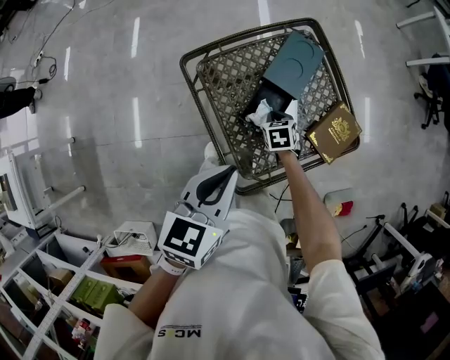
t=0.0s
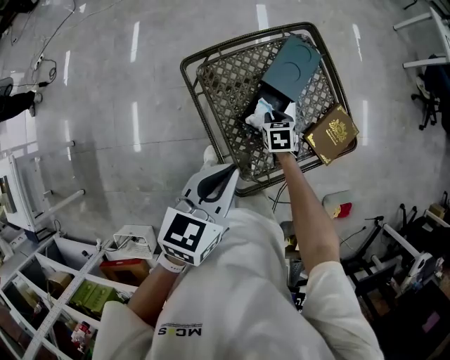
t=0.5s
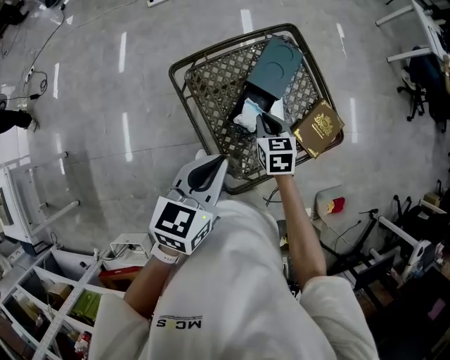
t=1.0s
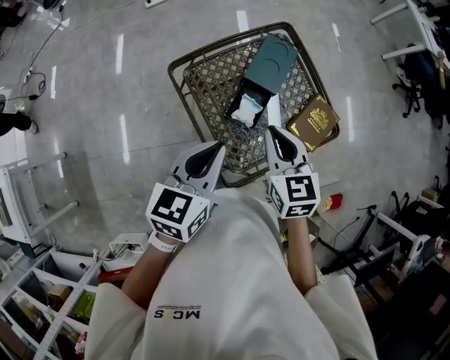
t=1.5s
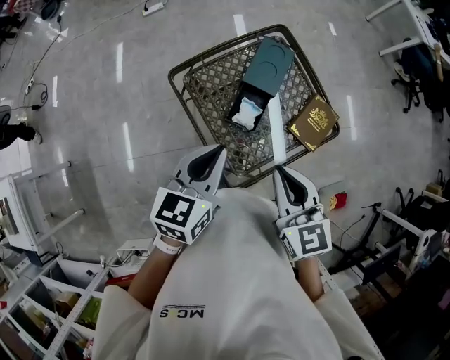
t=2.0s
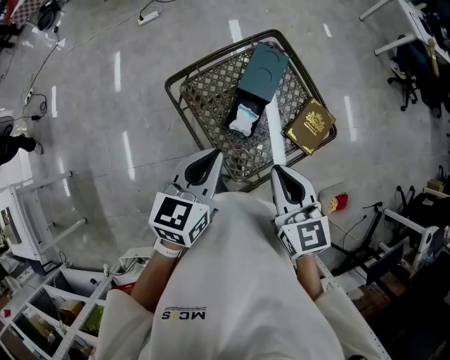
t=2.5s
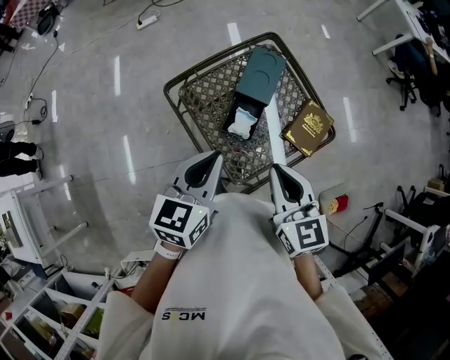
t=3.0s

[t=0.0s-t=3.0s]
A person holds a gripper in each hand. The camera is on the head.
t=0.0s to t=1.5s: The right gripper goes some 30 cm upward, and tilts its fingers approximately 30 degrees upward.
t=1.5s to t=3.0s: The right gripper shifts approximately 10 cm backward and upward.

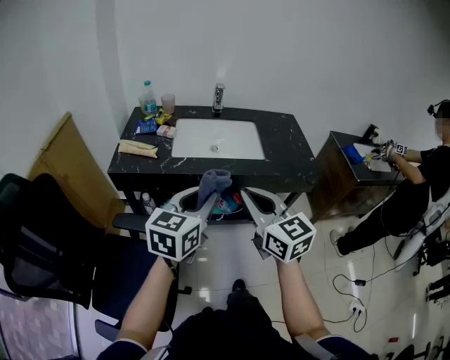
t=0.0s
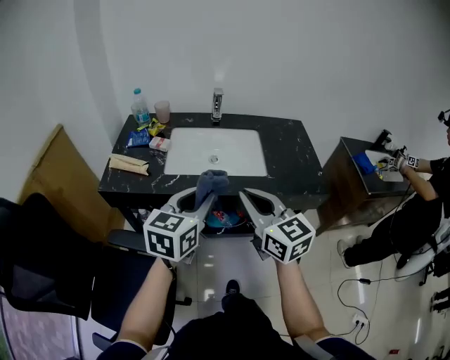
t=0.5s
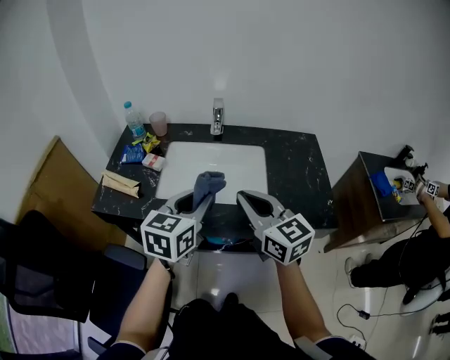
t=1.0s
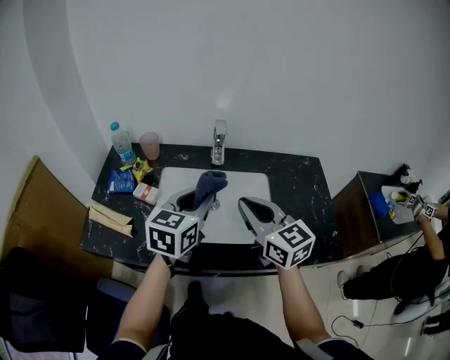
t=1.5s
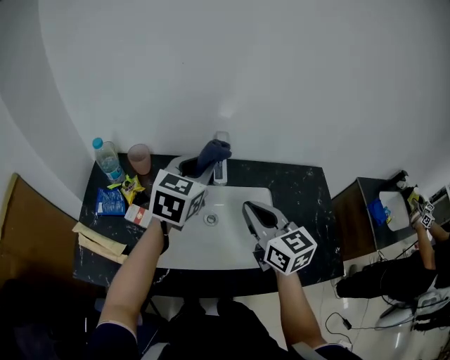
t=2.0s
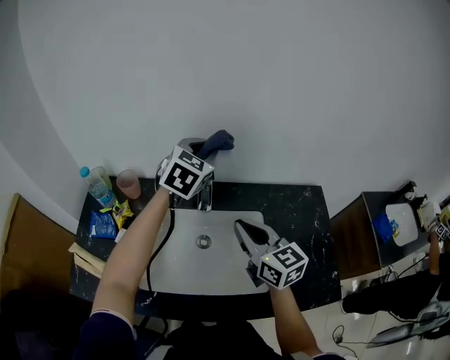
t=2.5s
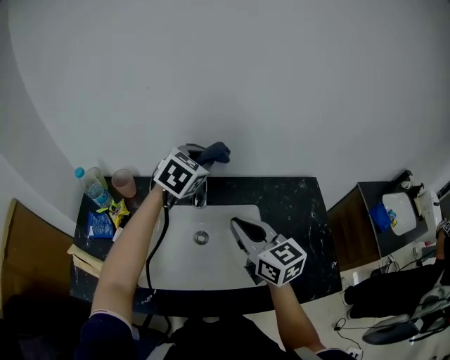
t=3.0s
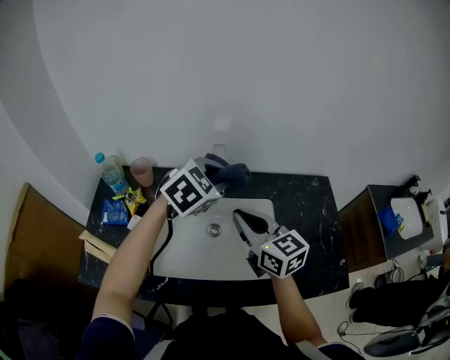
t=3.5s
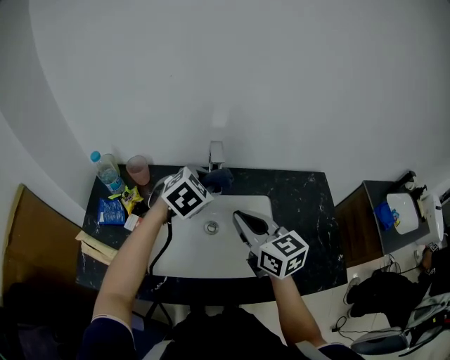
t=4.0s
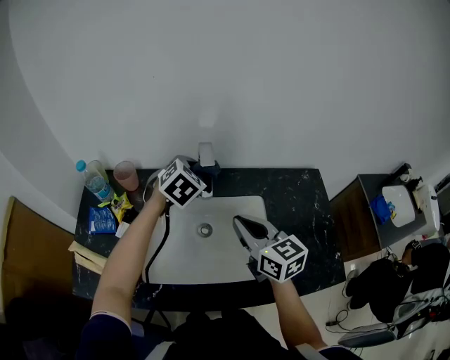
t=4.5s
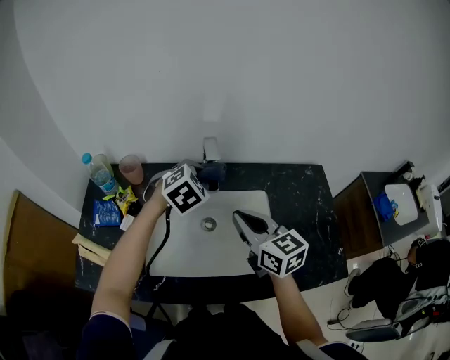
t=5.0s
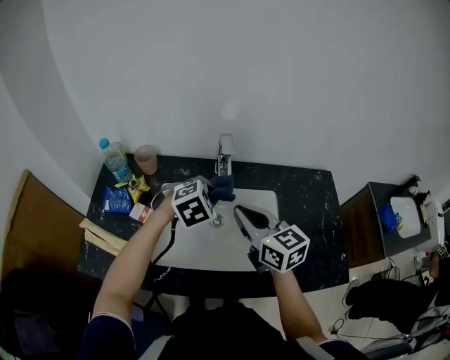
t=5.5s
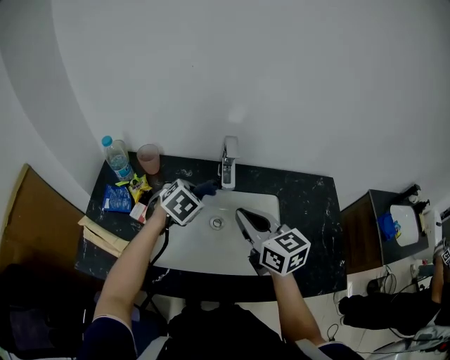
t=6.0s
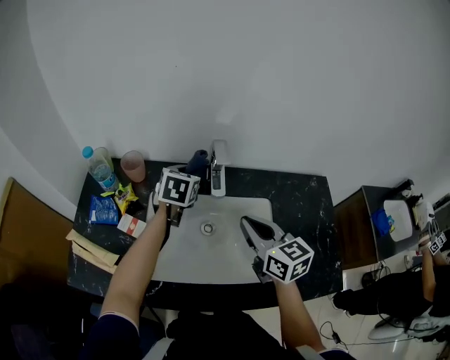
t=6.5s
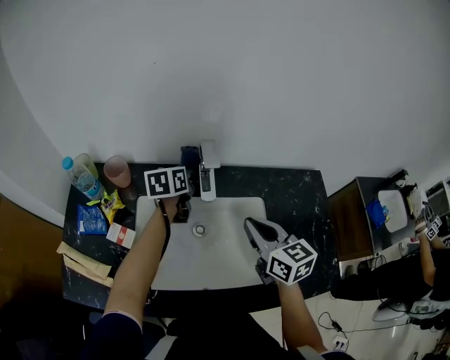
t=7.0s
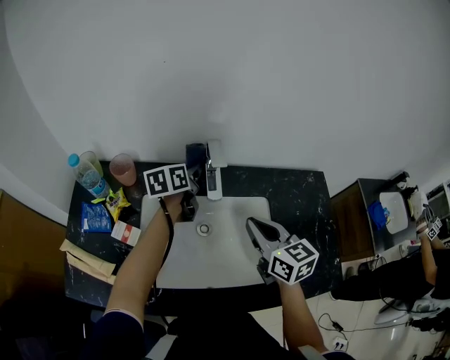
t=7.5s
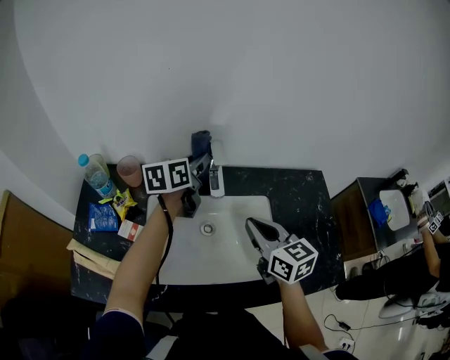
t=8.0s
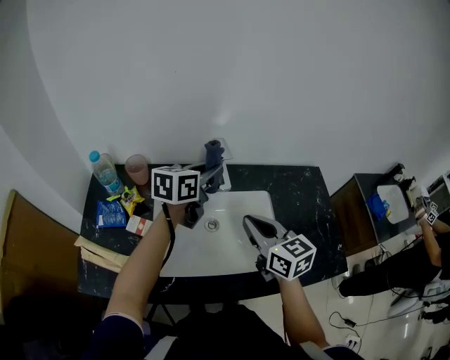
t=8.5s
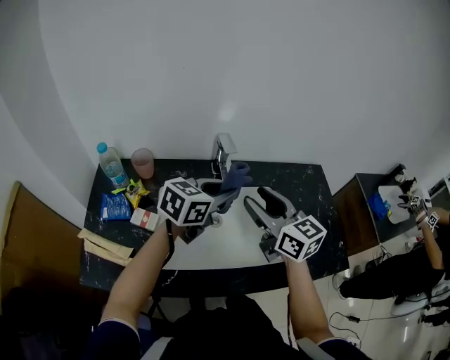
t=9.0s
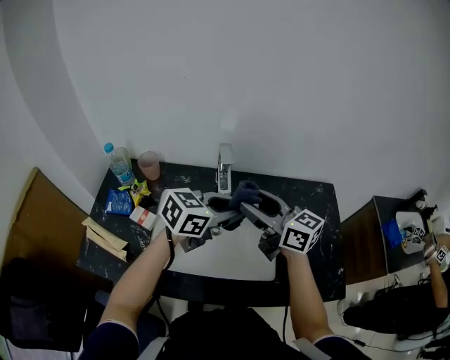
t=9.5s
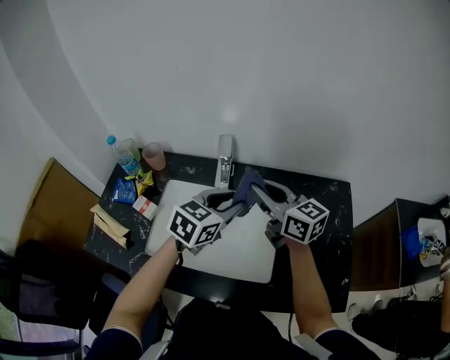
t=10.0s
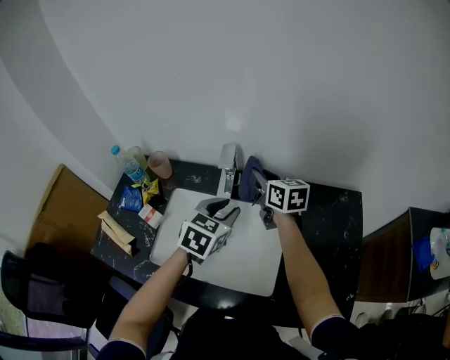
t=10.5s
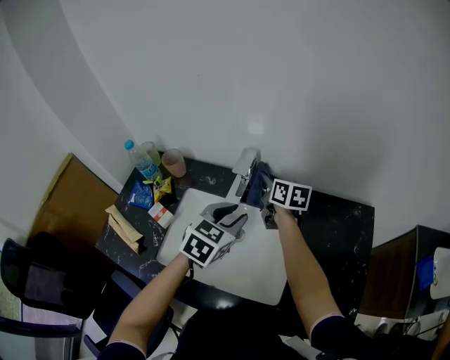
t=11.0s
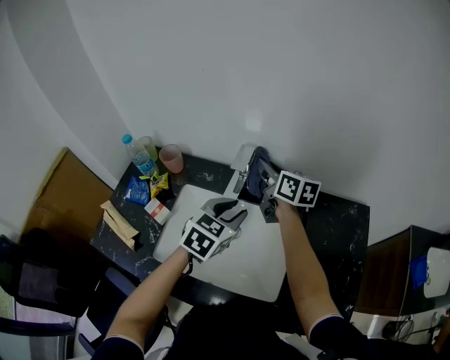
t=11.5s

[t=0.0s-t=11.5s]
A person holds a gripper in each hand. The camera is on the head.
t=0.0s to t=2.0s: The pair of grippers is taken forward, some 50 cm.
t=2.0s to t=4.0s: The left gripper is displaced downward by some 10 cm, goes forward and returns, some 10 cm each way, and changes its angle by about 40 degrees.
t=4.0s to t=6.0s: The left gripper goes about 10 cm downward and to the left, and travels forward and back again, some 5 cm each way.
t=6.0s to t=7.5s: The right gripper moves to the right, about 5 cm. The left gripper travels forward by approximately 15 cm, and rotates around the line of its fingers by some 50 degrees, counterclockwise from behind.
t=7.5s to t=9.5s: The right gripper travels upward by roughly 10 cm, swivels approximately 30 degrees, and opens, while the left gripper travels backward, to the right and upward by about 25 cm, and rotates some 50 degrees.
t=9.5s to t=11.5s: The left gripper goes approximately 10 cm downward and forward, and swivels roughly 40 degrees; the right gripper shifts about 20 cm forward, and closes its fingers.

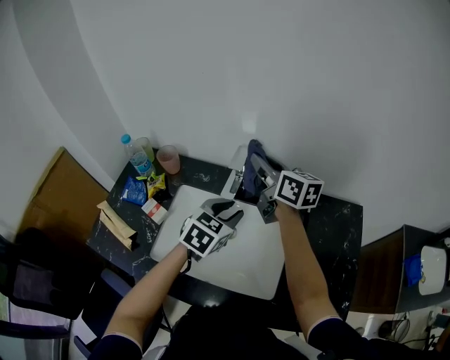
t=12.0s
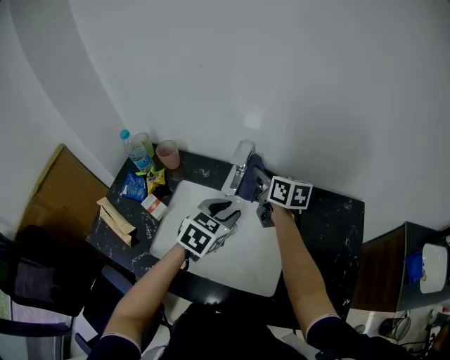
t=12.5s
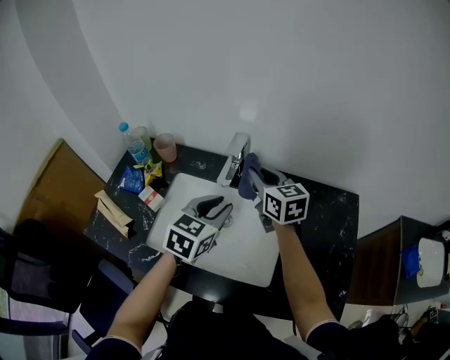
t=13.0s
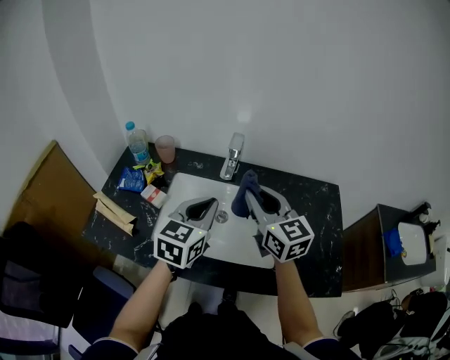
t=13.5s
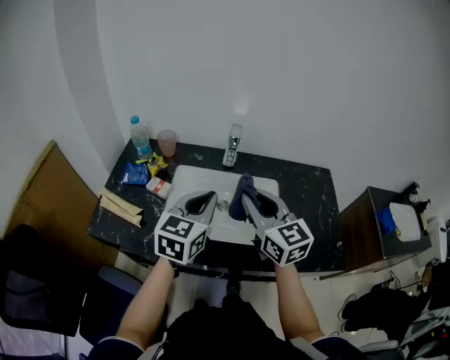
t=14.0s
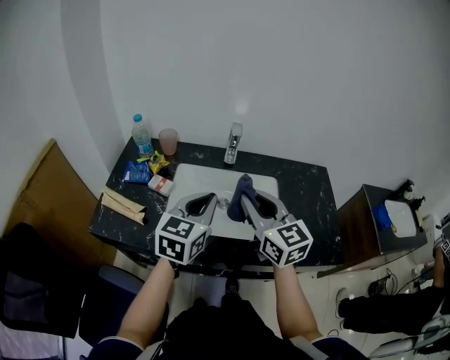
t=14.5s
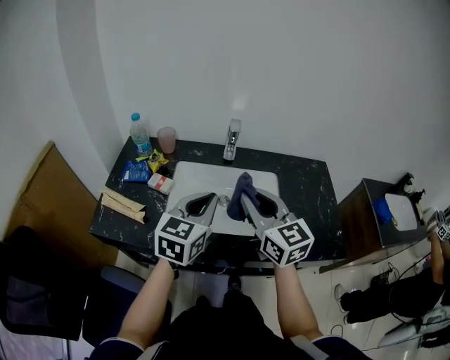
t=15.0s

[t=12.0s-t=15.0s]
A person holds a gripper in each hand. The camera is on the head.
t=12.0s to t=13.5s: The right gripper heads backward, covering roughly 20 cm, and rotates roughly 30 degrees. Meanwhile the left gripper is displaced backward, upward and to the left by about 15 cm, turns by about 20 degrees, and closes its fingers.
t=13.5s to t=15.0s: The grippers both shift backward by some 10 cm.

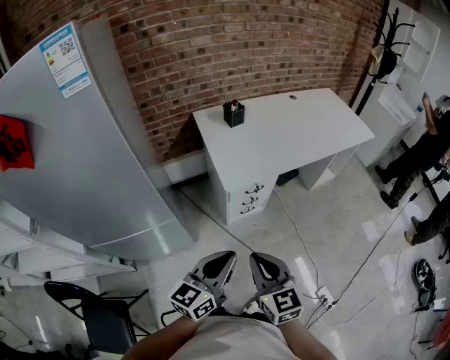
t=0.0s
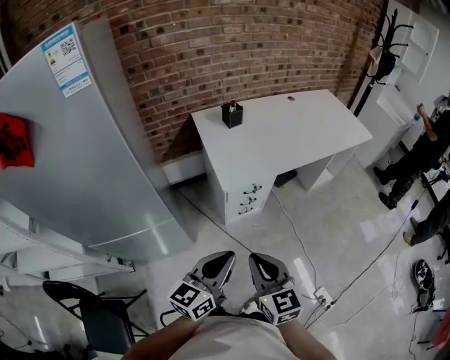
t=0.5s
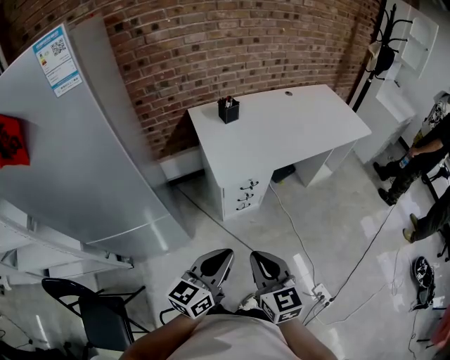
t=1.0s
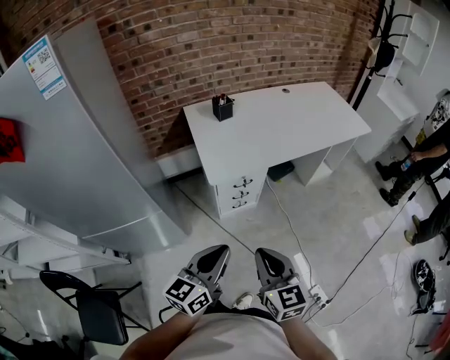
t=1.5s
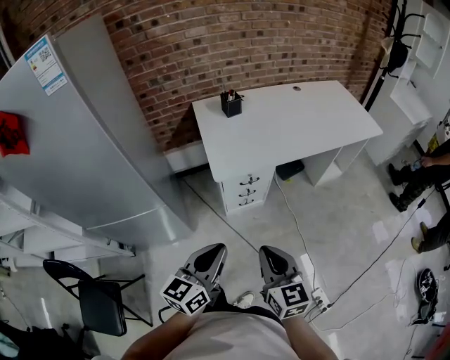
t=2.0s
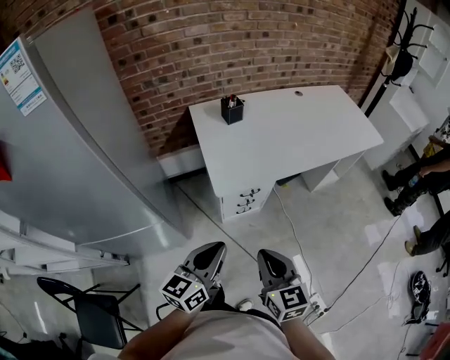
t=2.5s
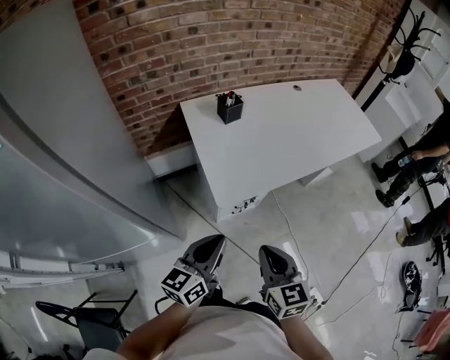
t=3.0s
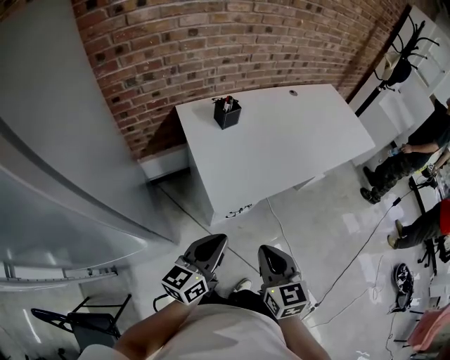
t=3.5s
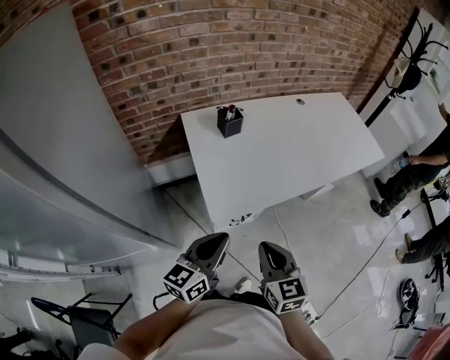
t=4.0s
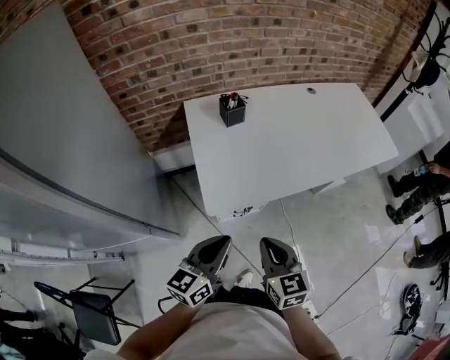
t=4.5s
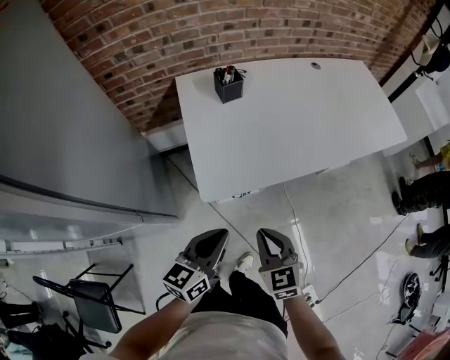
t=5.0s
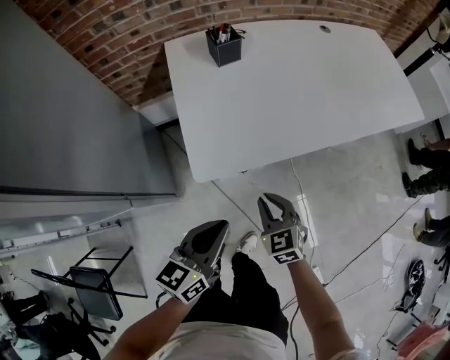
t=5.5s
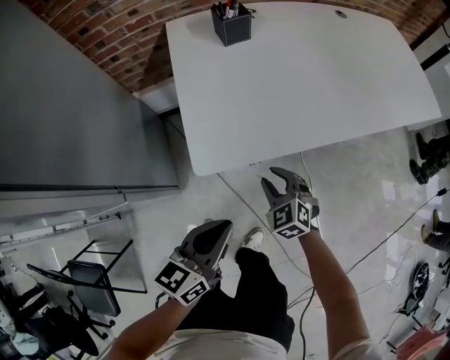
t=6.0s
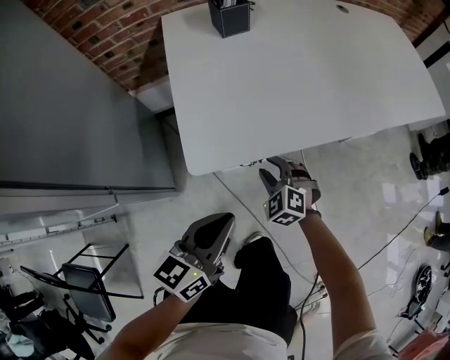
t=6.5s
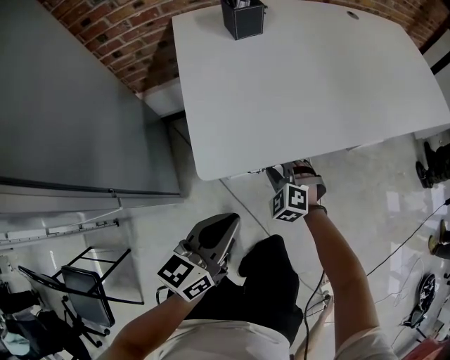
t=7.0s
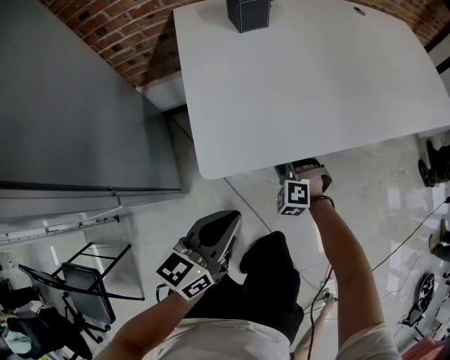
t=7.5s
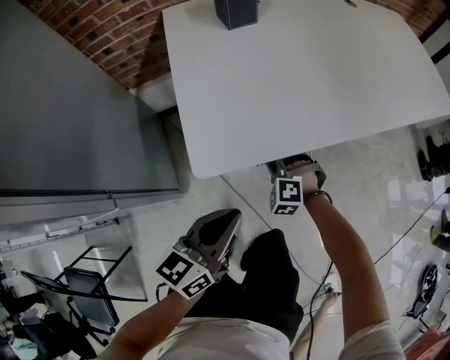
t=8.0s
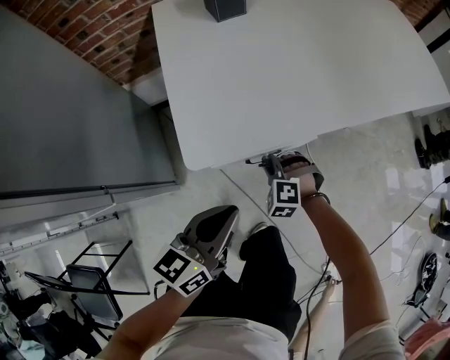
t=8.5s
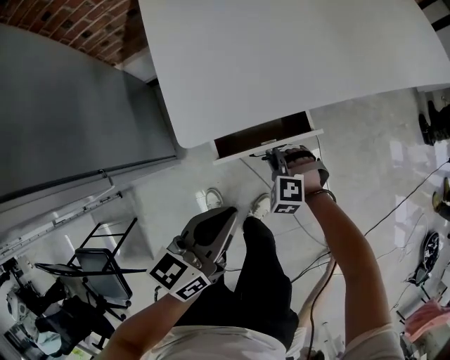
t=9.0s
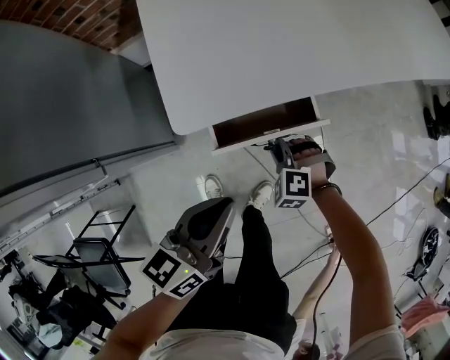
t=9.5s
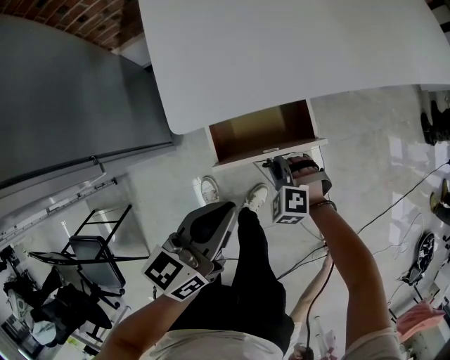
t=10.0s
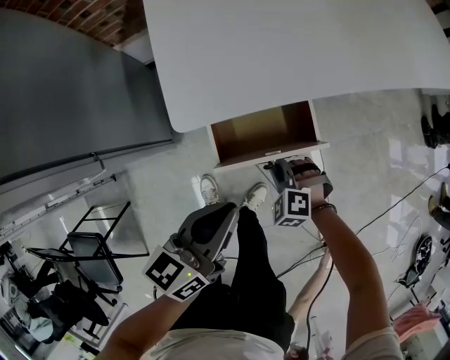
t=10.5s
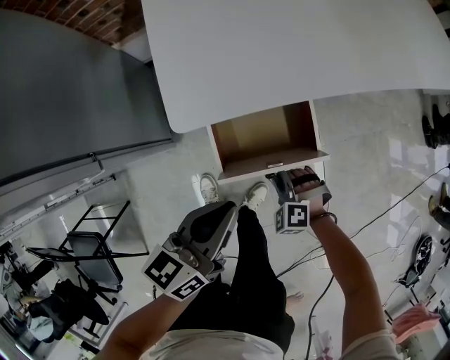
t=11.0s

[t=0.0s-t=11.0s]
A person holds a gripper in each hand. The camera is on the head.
t=0.0s to t=2.0s: The right gripper shifts about 10 cm to the right; the left gripper heads to the right, covering some 5 cm.
t=2.0s to t=3.5s: The two grippers go about 20 cm forward and to the left.
t=3.5s to t=5.5s: The right gripper heads downward, forward and to the right, covering approximately 25 cm, and turns by some 30 degrees; the left gripper heads to the right and downward, covering about 15 cm.
t=5.5s to t=7.5s: The right gripper heads downward and forward, covering approximately 25 cm, rolls counterclockwise, seen from behind, by approximately 50 degrees, and opens, then closes once more; the left gripper travels downward by approximately 15 cm.
t=7.5s to t=9.0s: The left gripper changes place by some 5 cm; the right gripper shifts about 10 cm backward.
t=9.0s to t=11.0s: The right gripper moves backward, approximately 10 cm.
